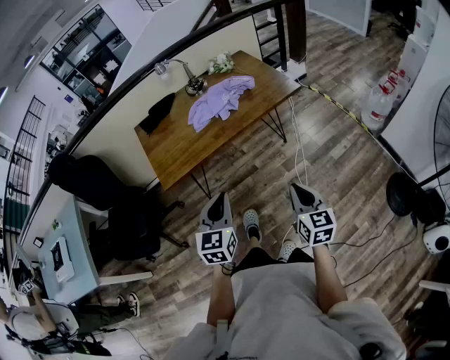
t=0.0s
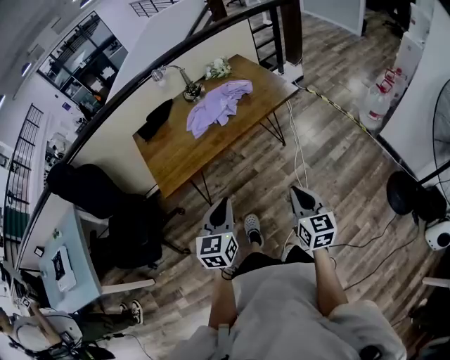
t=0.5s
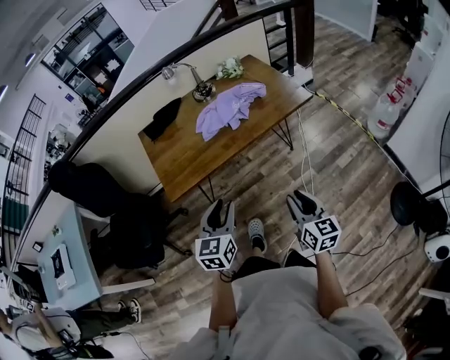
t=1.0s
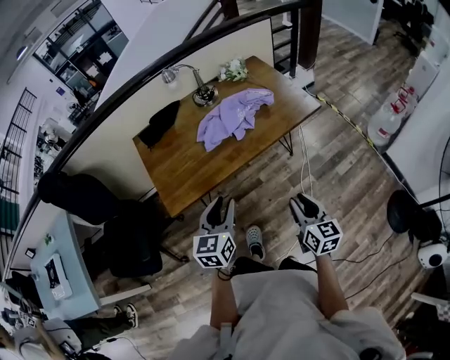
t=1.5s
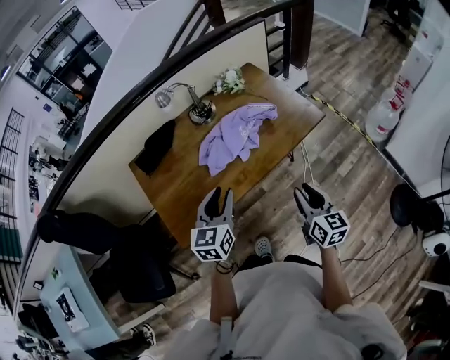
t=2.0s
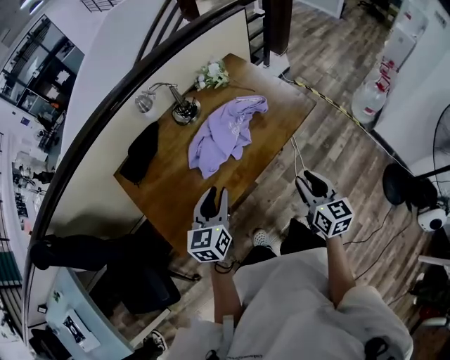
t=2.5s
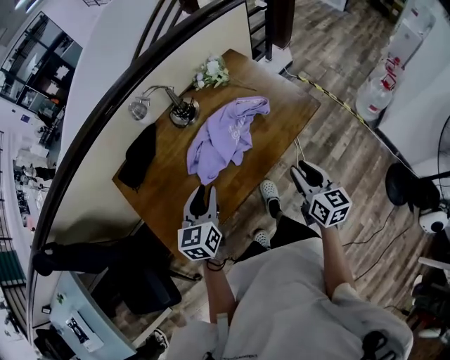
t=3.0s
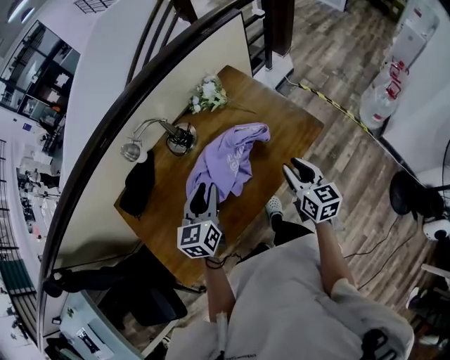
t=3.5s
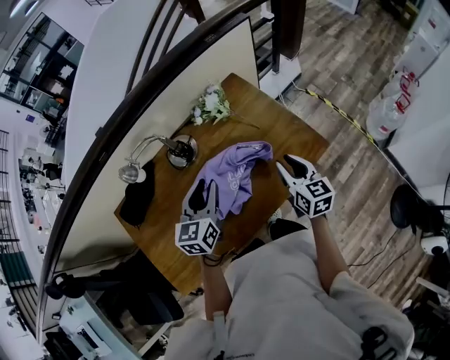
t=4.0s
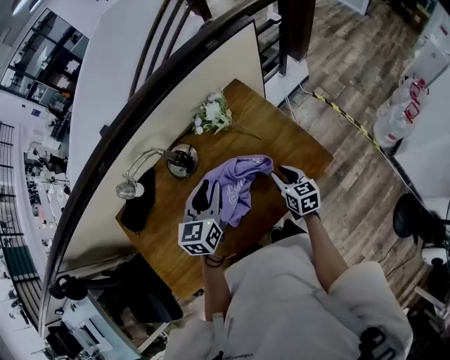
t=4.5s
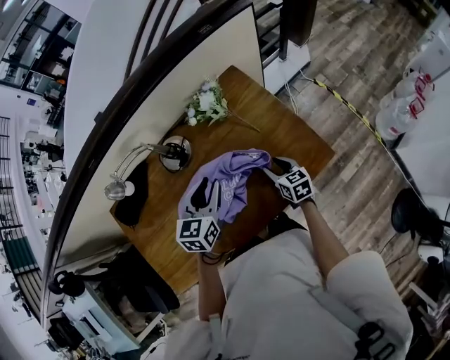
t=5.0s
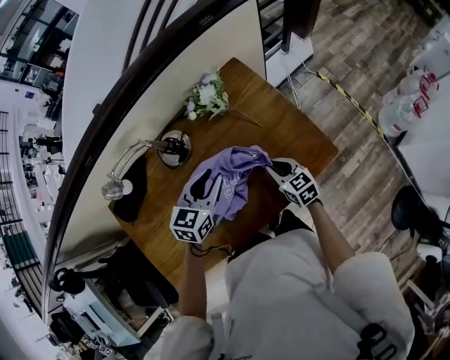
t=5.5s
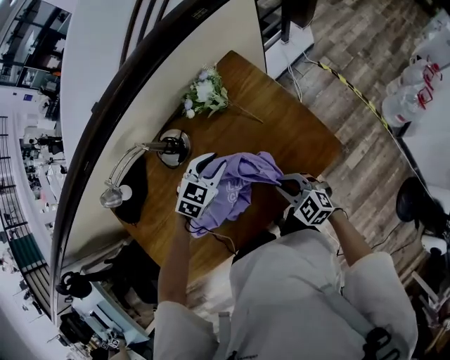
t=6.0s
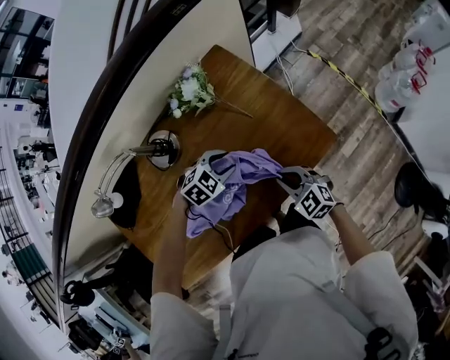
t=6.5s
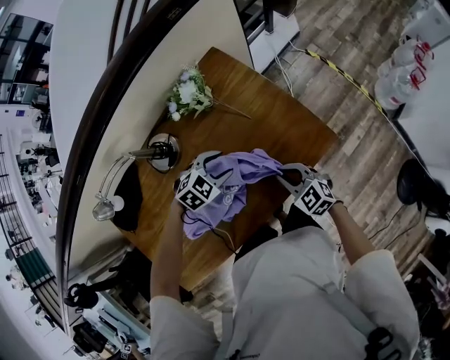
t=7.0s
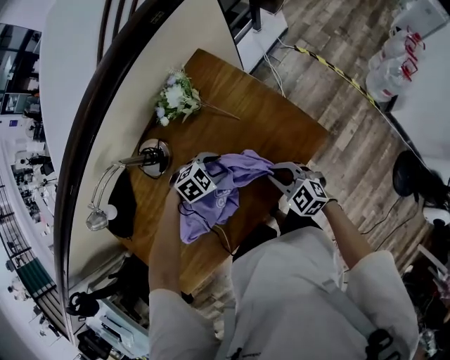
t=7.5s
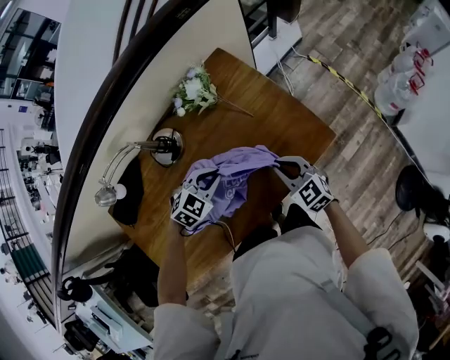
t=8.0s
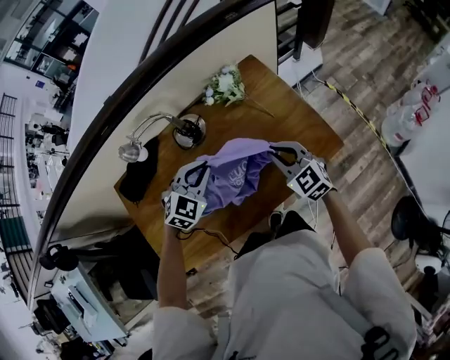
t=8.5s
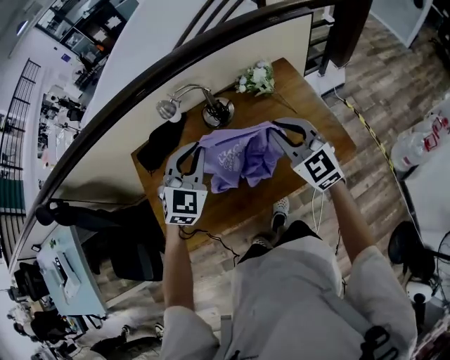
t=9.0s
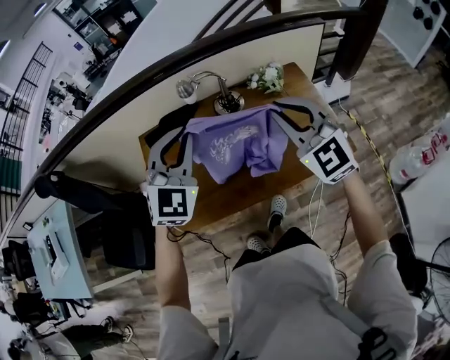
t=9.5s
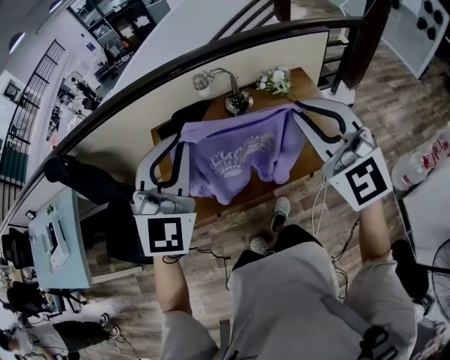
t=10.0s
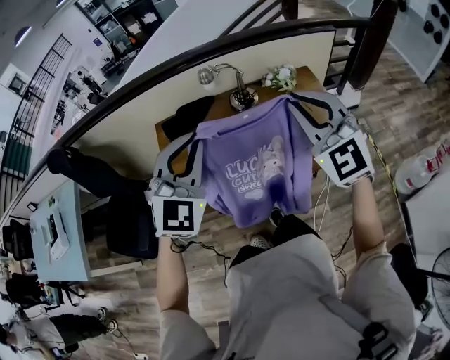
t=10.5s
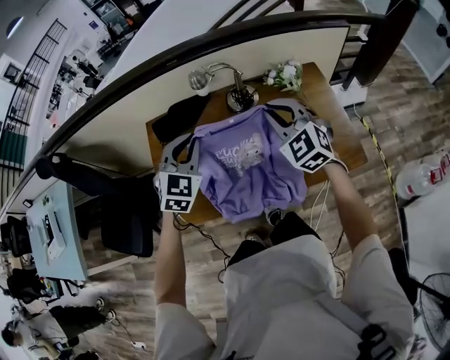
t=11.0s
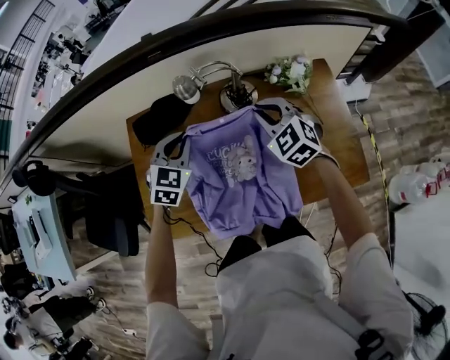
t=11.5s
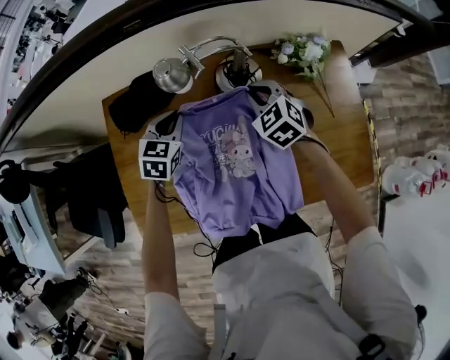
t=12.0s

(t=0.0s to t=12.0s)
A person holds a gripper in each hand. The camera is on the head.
t=0.0s - t=2.0s: The two grippers go about 30 cm forward. The right gripper opens. Meanwhile the left gripper opens.
t=2.0s - t=4.0s: Both grippers travel together forward, about 35 cm.
t=4.0s - t=6.0s: The left gripper travels downward, forward and to the right by about 20 cm, and rotates some 40 degrees, while the right gripper heads downward, covering roughly 15 cm, and changes its angle by some 50 degrees.
t=6.0s - t=8.0s: The left gripper reaches some 10 cm downward, then returns, and closes up.
t=8.0s - t=10.0s: The grippers both shift upward by some 50 cm. The left gripper tilts its fingers about 50 degrees upward, while the right gripper swivels roughly 50 degrees.
t=10.0s - t=12.0s: Both grippers travel together downward and forward, approximately 60 cm. The right gripper points its fingers roughly 40 degrees further downward. Meanwhile the left gripper tilts its fingers some 40 degrees downward.

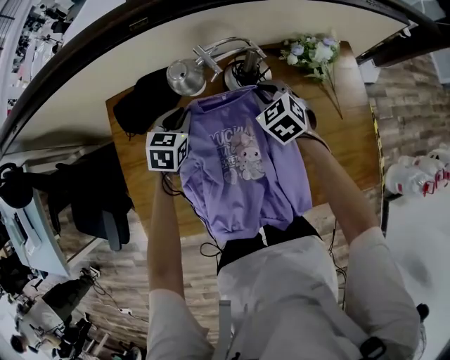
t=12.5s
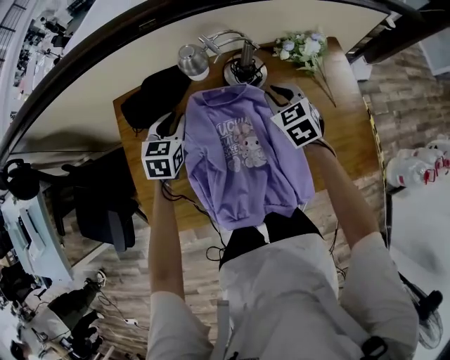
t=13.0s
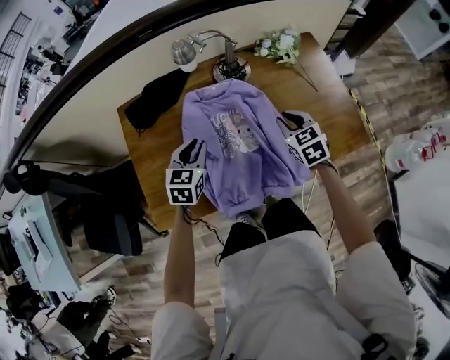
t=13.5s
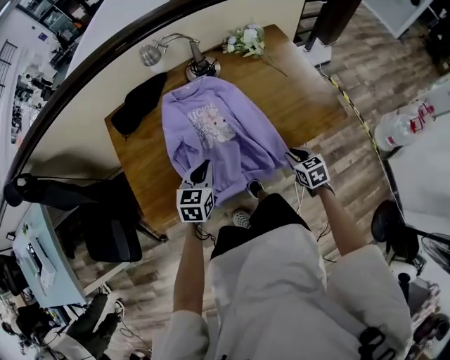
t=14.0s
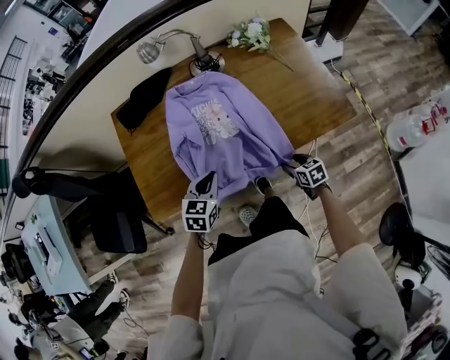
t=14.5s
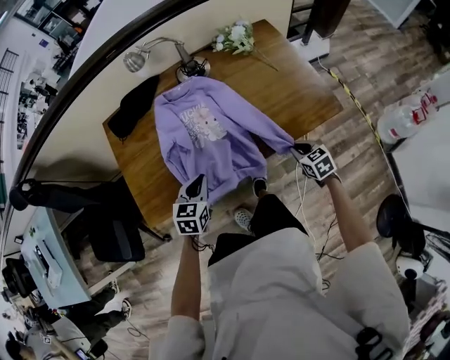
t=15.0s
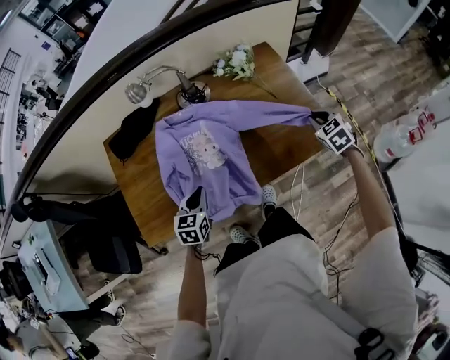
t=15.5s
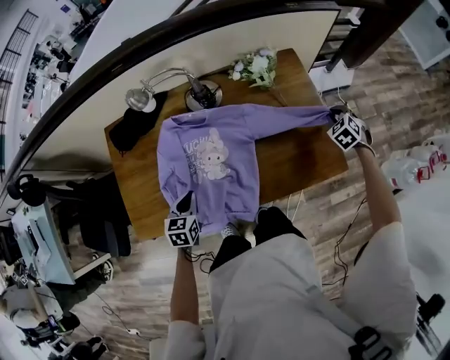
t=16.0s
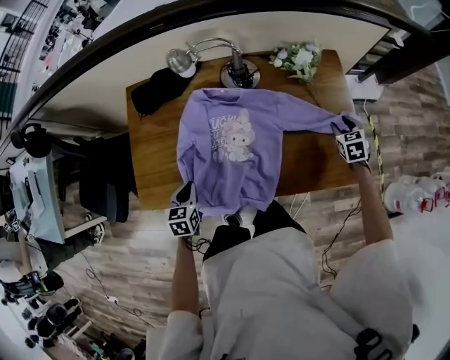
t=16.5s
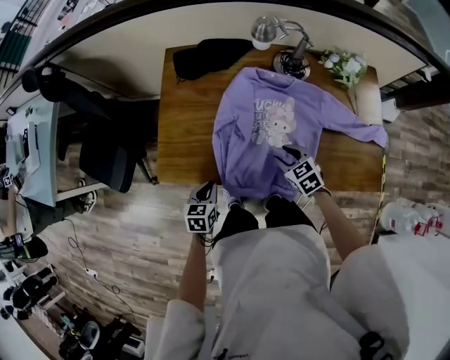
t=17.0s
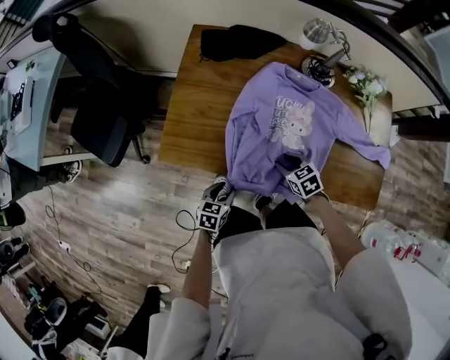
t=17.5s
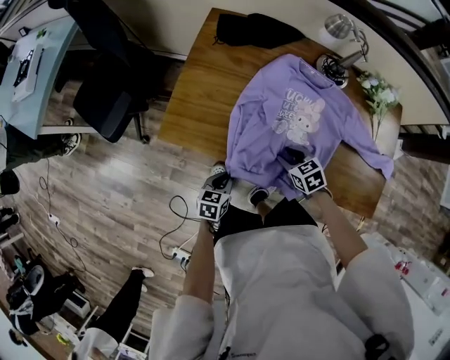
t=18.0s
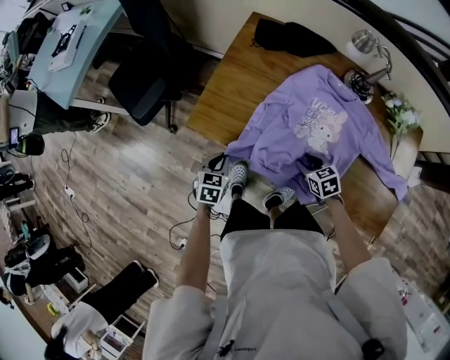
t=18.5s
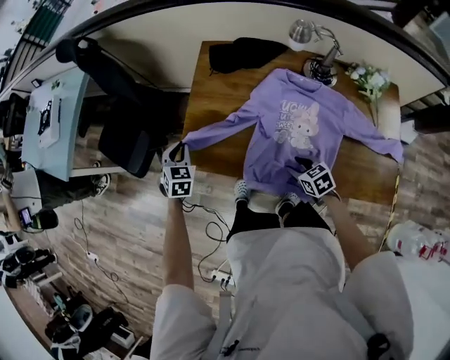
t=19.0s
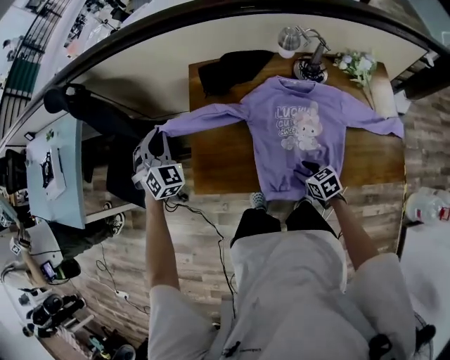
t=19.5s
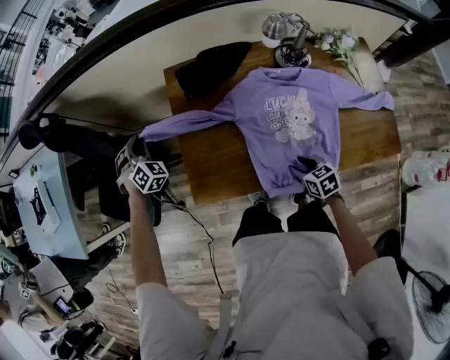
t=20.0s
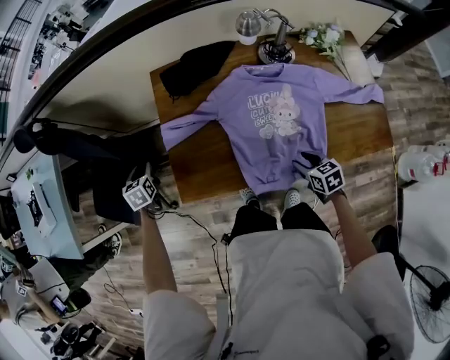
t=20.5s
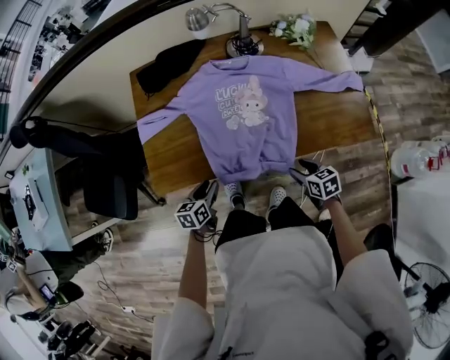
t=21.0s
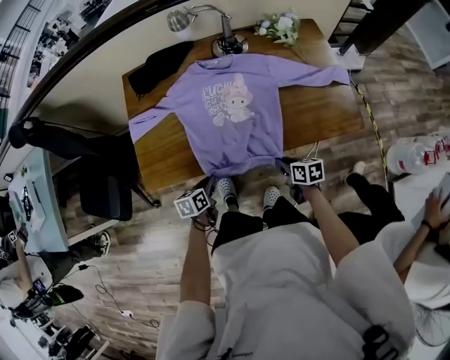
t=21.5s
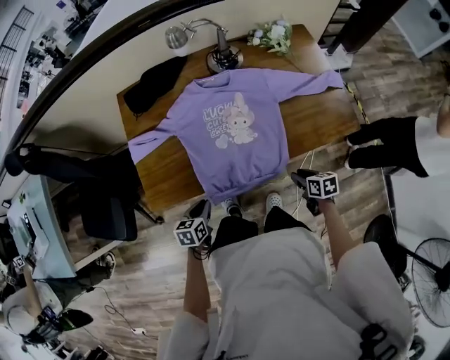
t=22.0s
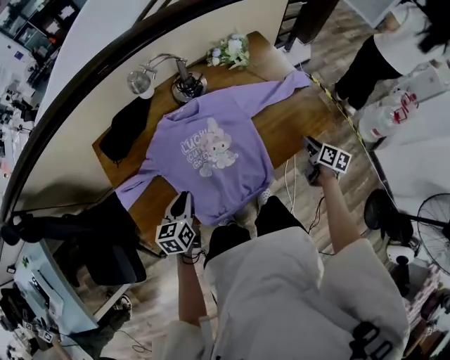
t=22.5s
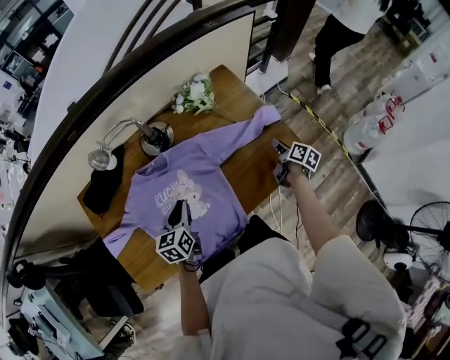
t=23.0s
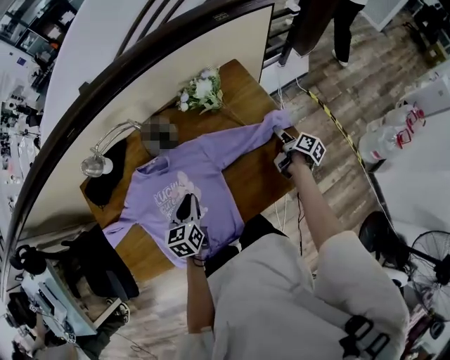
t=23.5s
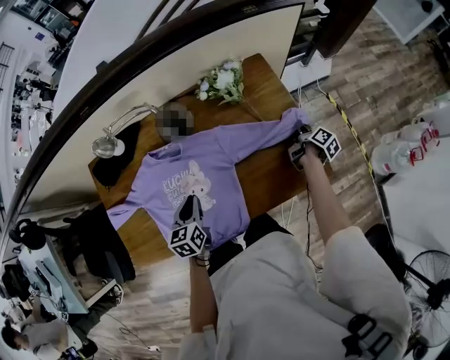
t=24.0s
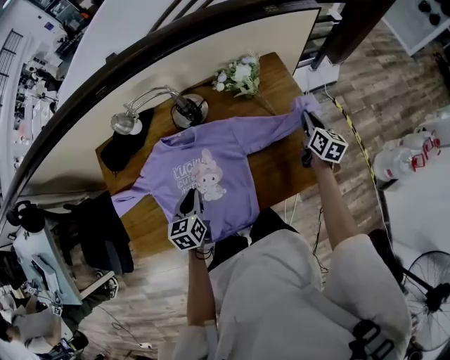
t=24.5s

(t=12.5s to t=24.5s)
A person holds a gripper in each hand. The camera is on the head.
t=12.5s - t=14.5s: The left gripper travels backward by roughly 35 cm; the right gripper is displaced backward and to the right by roughly 50 cm, rotates around the line of its fingers by approximately 50 degrees, clockwise from behind, and opens.
t=14.5s - t=16.5s: The left gripper travels to the left by approximately 10 cm, and rotates some 30 degrees; the right gripper shifts about 40 cm forward, to the right and upward, rotates roughly 30 degrees, and closes, then reopens.
t=16.5s - t=18.5s: The left gripper ends up about 20 cm from where it was, and opens, then closes again. Meanwhile the right gripper changes place by approximately 40 cm, and turns by some 50 degrees.
t=18.5s - t=20.5s: The left gripper travels forward by roughly 35 cm, and opens its fingers. Meanwhile the right gripper ends up approximately 5 cm from where it was, and changes its angle by some 40 degrees.
t=20.5s - t=22.5s: The right gripper ends up approximately 30 cm from where it was, swivels about 60 degrees, and closes, then opens again; the left gripper moves about 40 cm, changes its angle by about 40 degrees, and closes its fingers.
t=22.5s - t=24.5s: The right gripper is displaced forward by some 25 cm, turns by about 20 degrees, and closes its fingers. Meanwhile the left gripper goes roughly 15 cm forward and to the right.

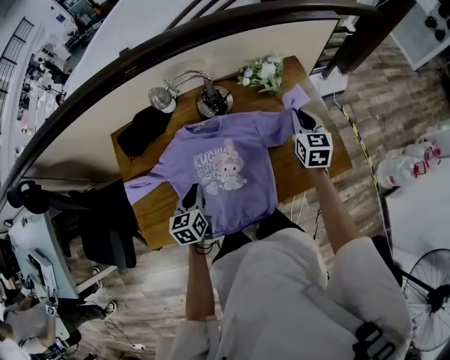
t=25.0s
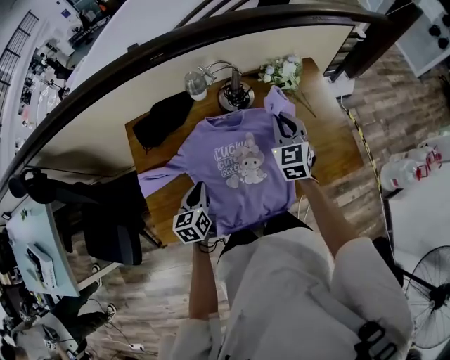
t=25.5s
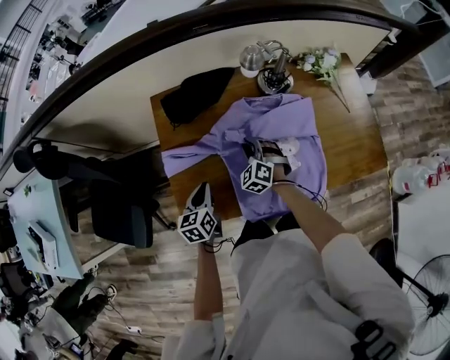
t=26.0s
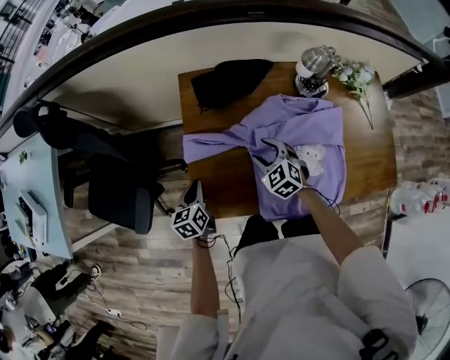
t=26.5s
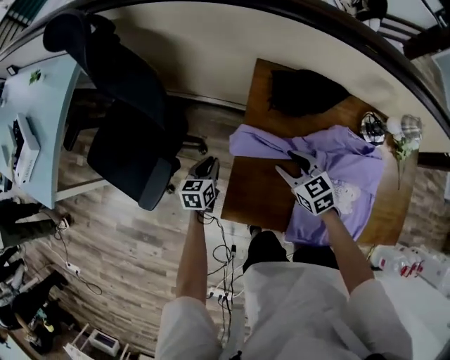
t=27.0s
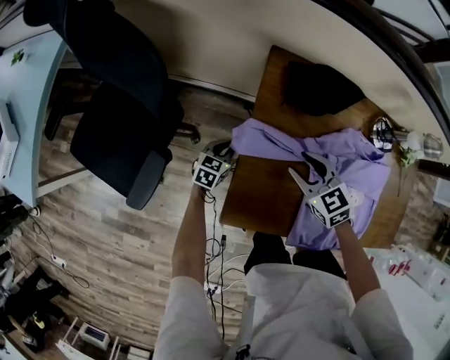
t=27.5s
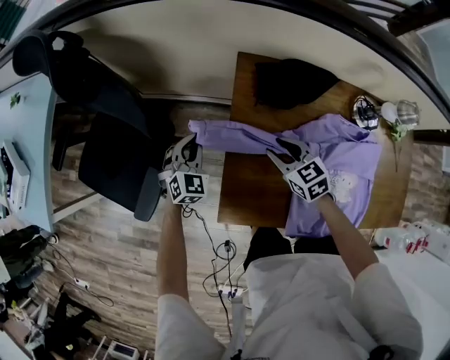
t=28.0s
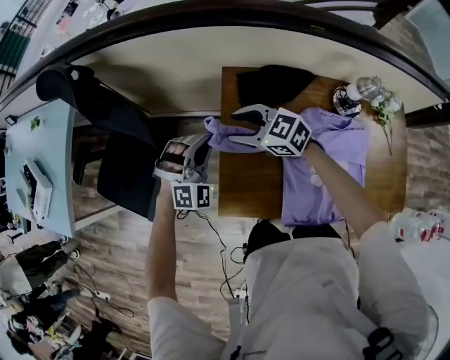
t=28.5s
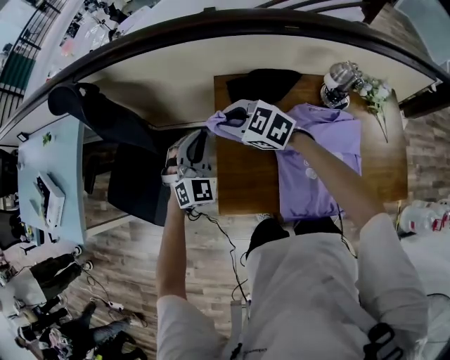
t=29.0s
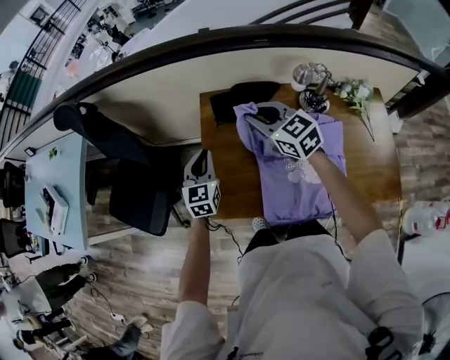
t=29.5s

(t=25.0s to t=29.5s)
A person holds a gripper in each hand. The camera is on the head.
t=25.0s - t=27.0s: The two grippers travel together, roughly 50 cm. The right gripper changes its angle by some 60 degrees, and opens its fingers.
t=27.0s - t=29.5s: The right gripper travels upward by approximately 25 cm, changes its angle by roughly 20 degrees, and closes up. Meanwhile the left gripper shifts approximately 30 cm upward and to the right, and turns by roughly 30 degrees.
